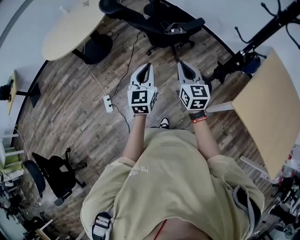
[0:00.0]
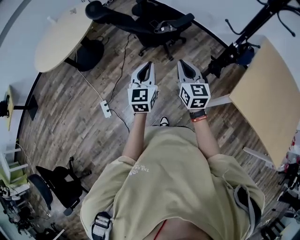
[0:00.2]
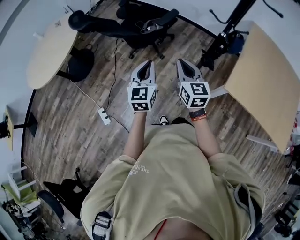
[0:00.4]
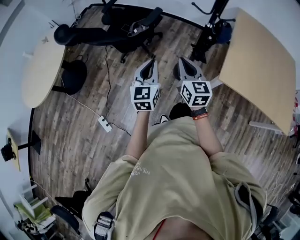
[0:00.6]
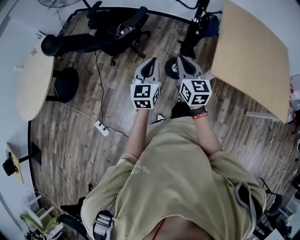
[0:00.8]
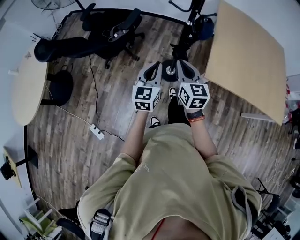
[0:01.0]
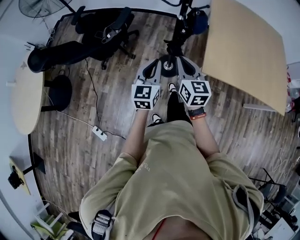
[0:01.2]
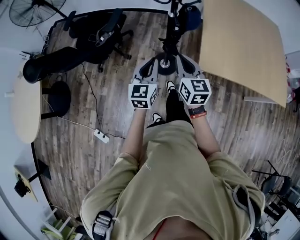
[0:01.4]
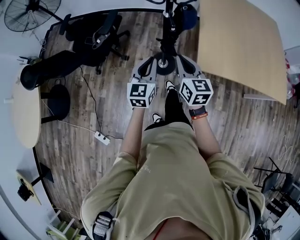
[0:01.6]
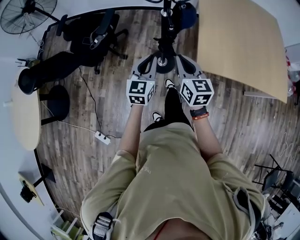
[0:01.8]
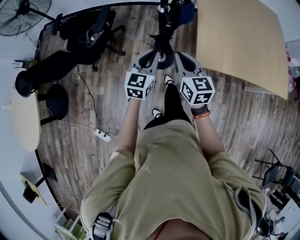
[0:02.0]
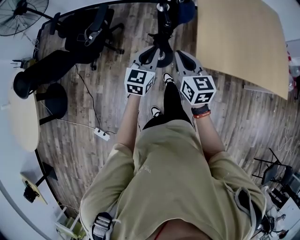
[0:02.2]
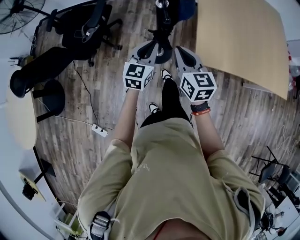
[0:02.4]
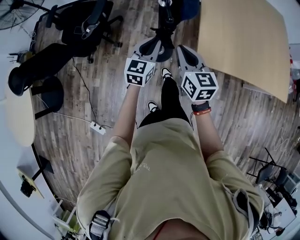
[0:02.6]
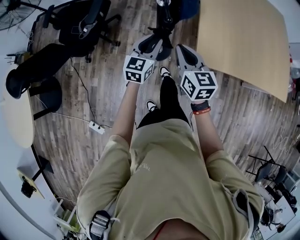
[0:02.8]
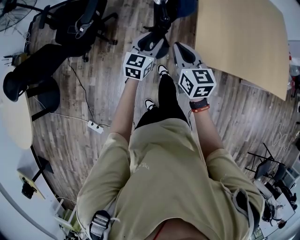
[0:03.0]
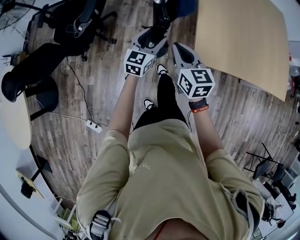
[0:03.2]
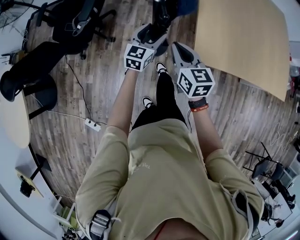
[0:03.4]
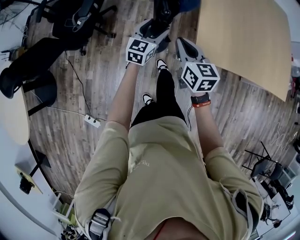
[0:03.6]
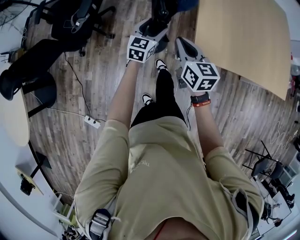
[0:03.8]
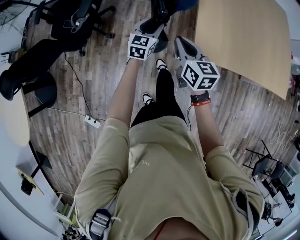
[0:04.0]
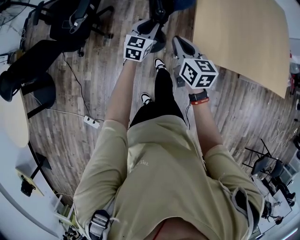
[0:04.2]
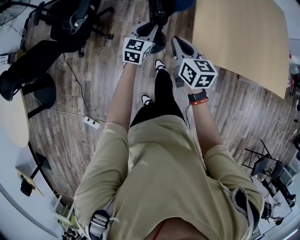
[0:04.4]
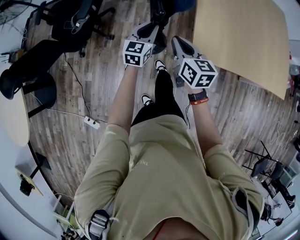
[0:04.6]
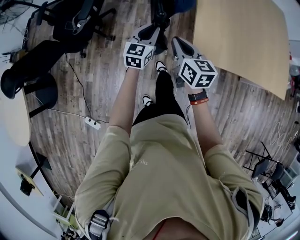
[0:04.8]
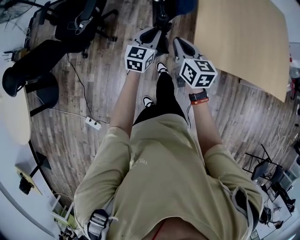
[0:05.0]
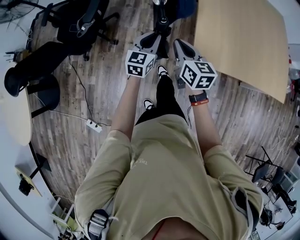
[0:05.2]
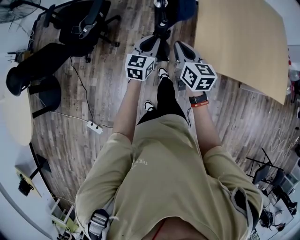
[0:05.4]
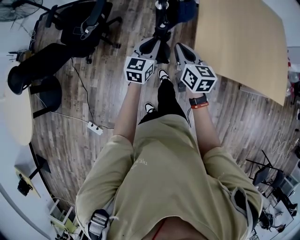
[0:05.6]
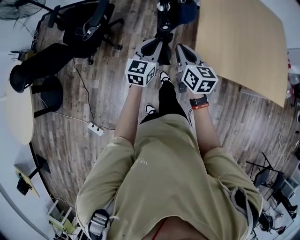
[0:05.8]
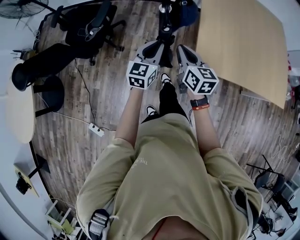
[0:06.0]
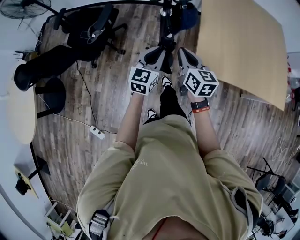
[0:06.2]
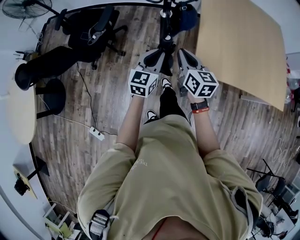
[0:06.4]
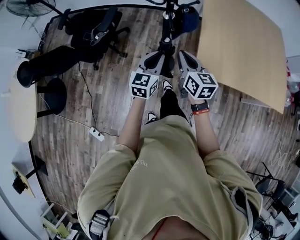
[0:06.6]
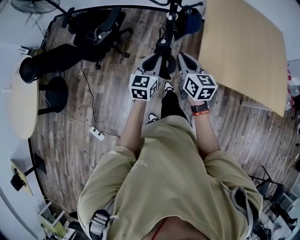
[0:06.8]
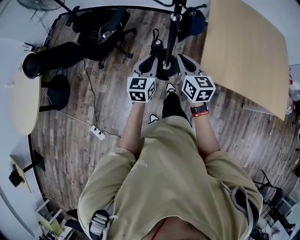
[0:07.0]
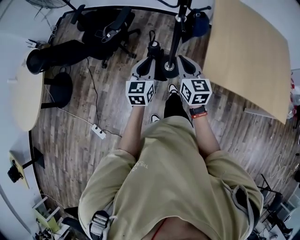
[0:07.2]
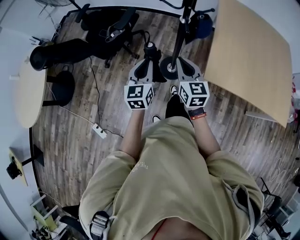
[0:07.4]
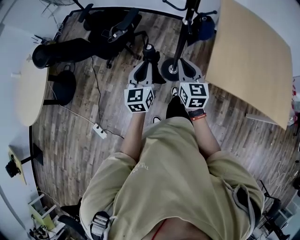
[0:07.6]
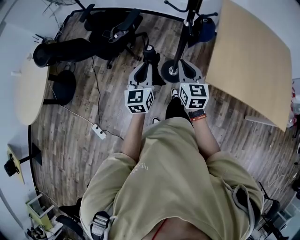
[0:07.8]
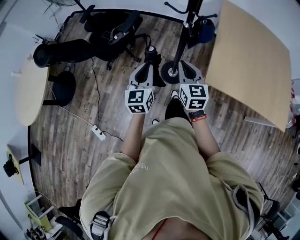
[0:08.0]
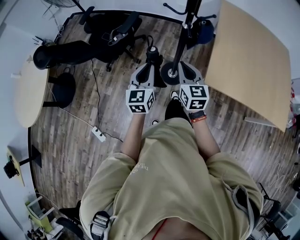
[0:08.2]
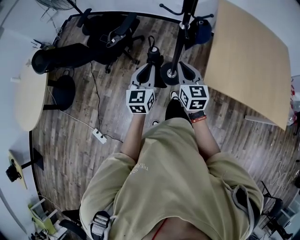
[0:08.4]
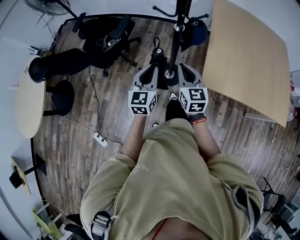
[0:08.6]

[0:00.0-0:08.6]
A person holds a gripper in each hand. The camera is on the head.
0.0 to 1.4 s: The right gripper moves approximately 30 cm, and turns by about 40 degrees, while the left gripper changes place by some 35 cm, and swivels some 40 degrees.
1.4 to 2.8 s: The right gripper goes roughly 10 cm forward and downward. The left gripper goes roughly 20 cm forward, downward and to the right.
2.8 to 4.4 s: The left gripper heads downward and forward, covering approximately 10 cm, and opens, then closes once more. The right gripper moves downward, about 5 cm.
4.4 to 5.8 s: The right gripper moves upward, approximately 5 cm. The left gripper heads upward and backward, covering roughly 15 cm.
5.8 to 7.2 s: The left gripper travels backward and to the left by roughly 15 cm. The right gripper is displaced backward and to the left by about 10 cm.

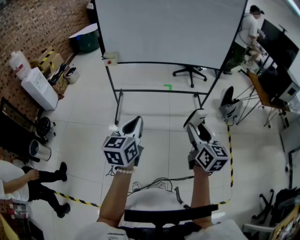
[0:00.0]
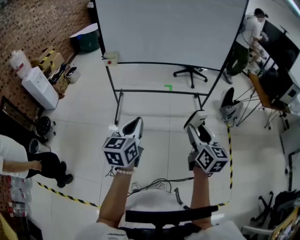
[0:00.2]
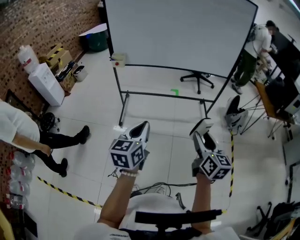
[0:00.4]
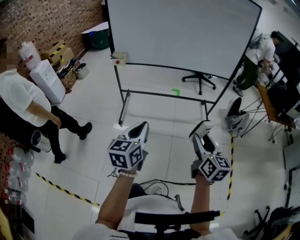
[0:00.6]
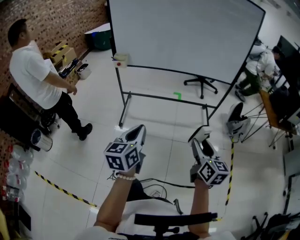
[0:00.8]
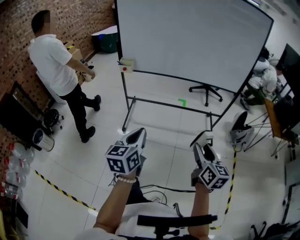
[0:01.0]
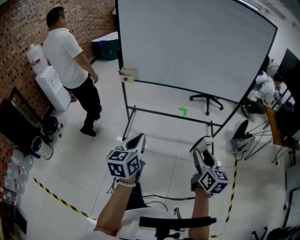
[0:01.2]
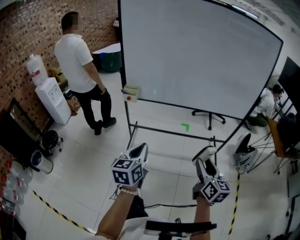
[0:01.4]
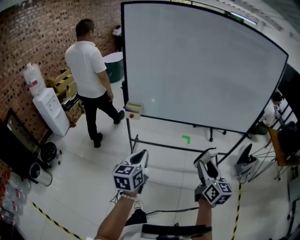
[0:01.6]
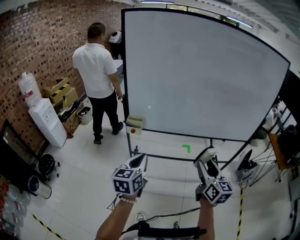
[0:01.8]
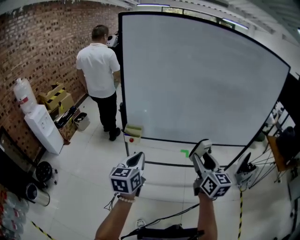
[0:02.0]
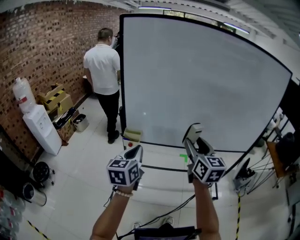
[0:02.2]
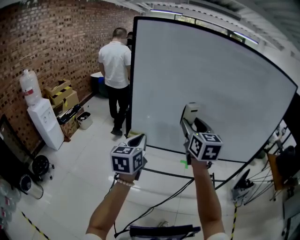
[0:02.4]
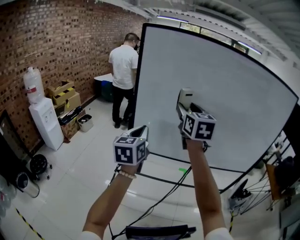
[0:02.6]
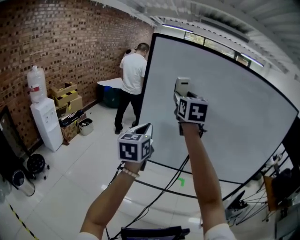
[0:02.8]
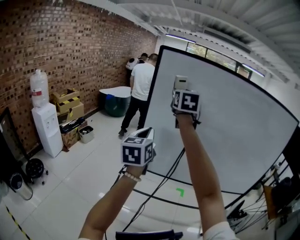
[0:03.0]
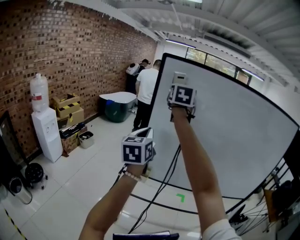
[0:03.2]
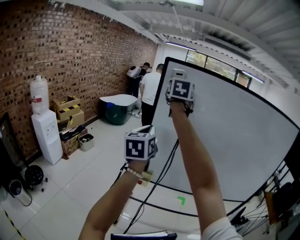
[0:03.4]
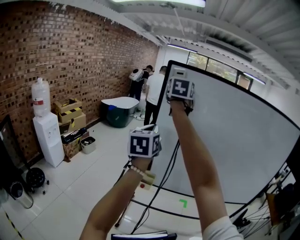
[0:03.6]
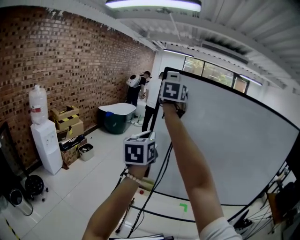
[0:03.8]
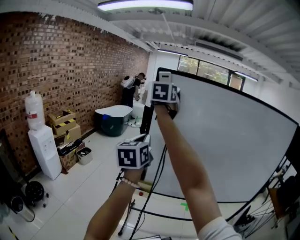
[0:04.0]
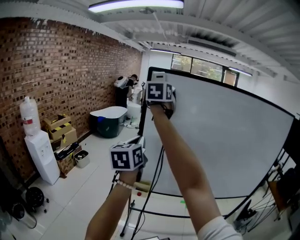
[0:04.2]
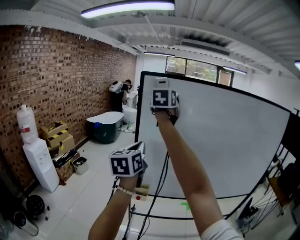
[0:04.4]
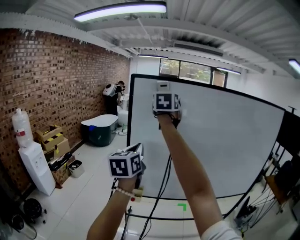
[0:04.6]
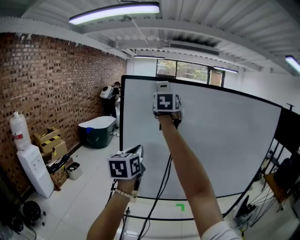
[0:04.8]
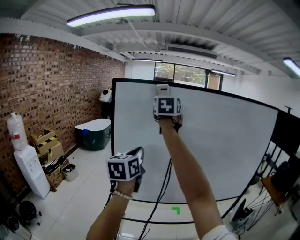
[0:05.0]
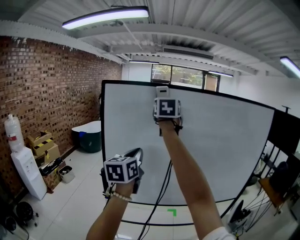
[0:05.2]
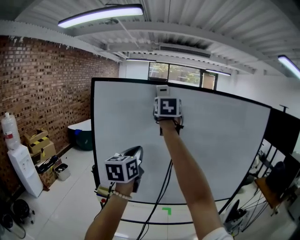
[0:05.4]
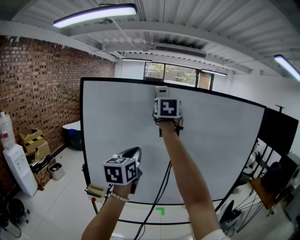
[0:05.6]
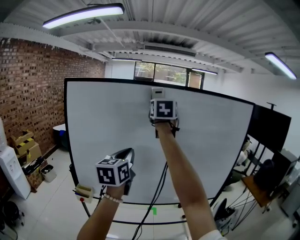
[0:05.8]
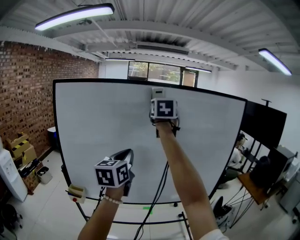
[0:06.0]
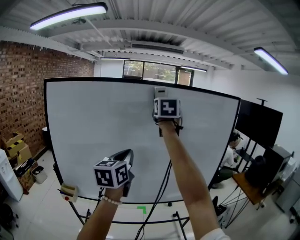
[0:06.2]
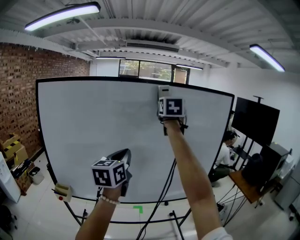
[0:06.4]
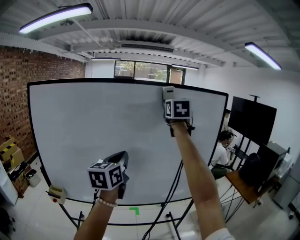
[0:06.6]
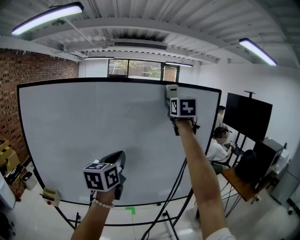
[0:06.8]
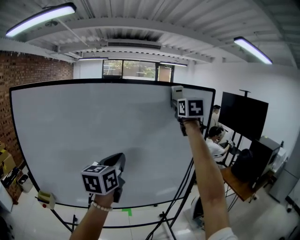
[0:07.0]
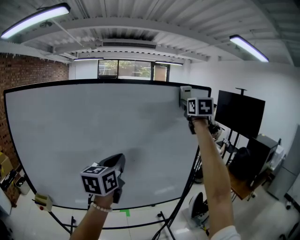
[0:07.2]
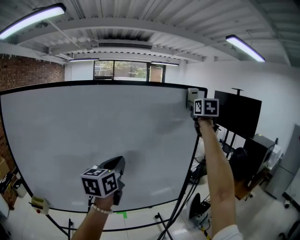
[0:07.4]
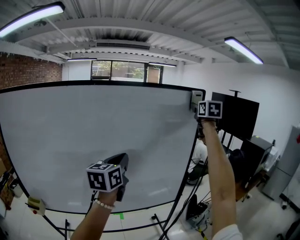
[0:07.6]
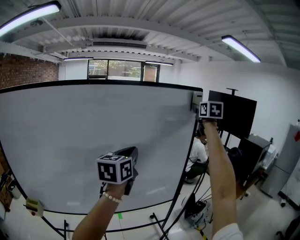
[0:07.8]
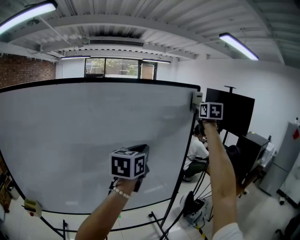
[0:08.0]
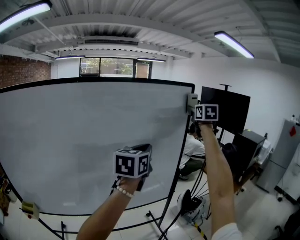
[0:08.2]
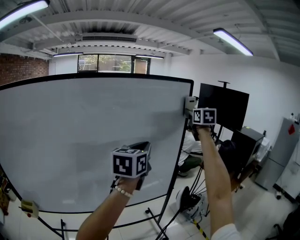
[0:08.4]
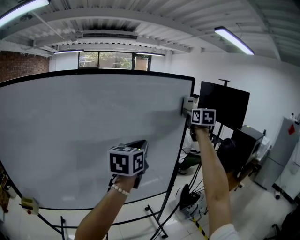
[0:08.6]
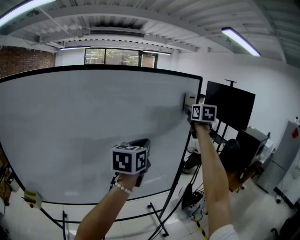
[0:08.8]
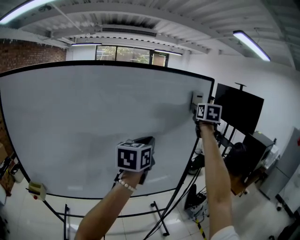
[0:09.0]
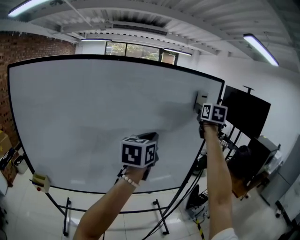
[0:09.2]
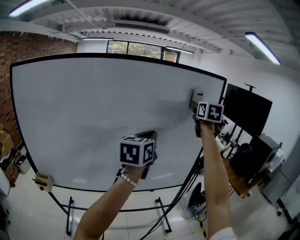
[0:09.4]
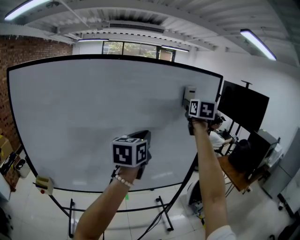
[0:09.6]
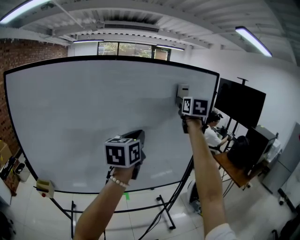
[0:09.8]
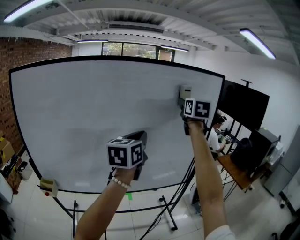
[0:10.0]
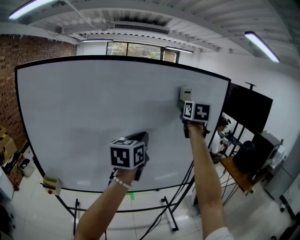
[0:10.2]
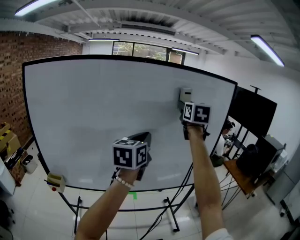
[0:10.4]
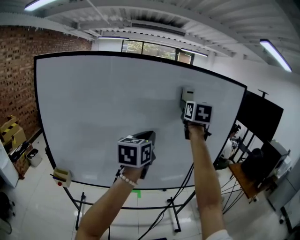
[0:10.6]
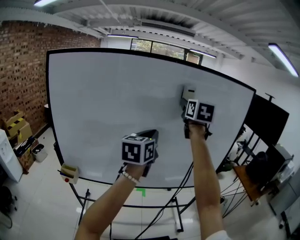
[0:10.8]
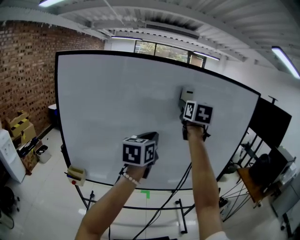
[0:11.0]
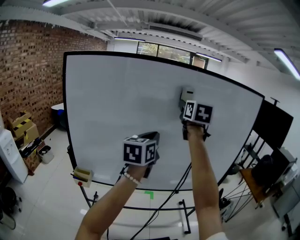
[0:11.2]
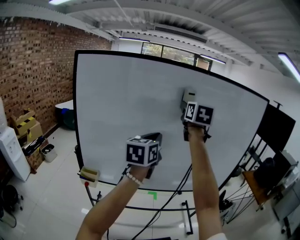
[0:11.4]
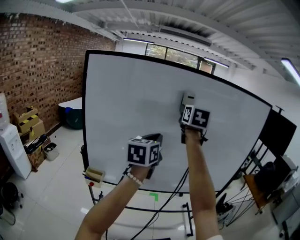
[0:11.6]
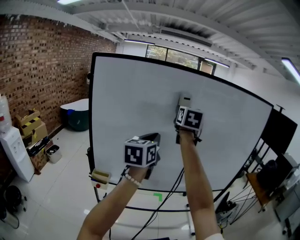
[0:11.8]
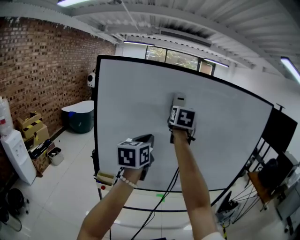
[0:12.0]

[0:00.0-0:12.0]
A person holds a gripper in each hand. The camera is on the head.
0.0 to 1.6 s: The right gripper heads forward, covering approximately 25 cm. The left gripper travels forward and to the left by some 30 cm.
1.6 to 3.0 s: The left gripper moves forward, upward and to the left, roughly 40 cm. The right gripper shifts approximately 70 cm forward, upward and to the left, and rotates approximately 30 degrees.
3.0 to 4.4 s: The left gripper goes some 5 cm upward. The right gripper travels upward and forward by some 10 cm.
4.4 to 6.0 s: The grippers both shift to the right by approximately 40 cm.
6.0 to 7.6 s: The right gripper goes approximately 50 cm to the right; the left gripper heads to the right and forward, covering some 30 cm.
7.6 to 9.0 s: The left gripper goes about 10 cm to the right, while the right gripper goes roughly 5 cm downward.
9.0 to 10.4 s: Both grippers travel together to the left and backward, some 20 cm.
10.4 to 12.0 s: The grippers both shift to the left by some 35 cm.

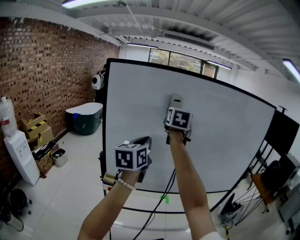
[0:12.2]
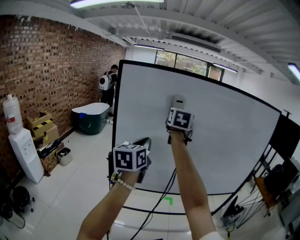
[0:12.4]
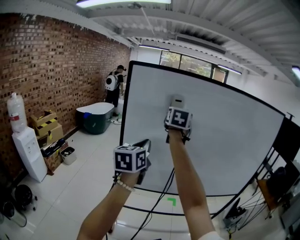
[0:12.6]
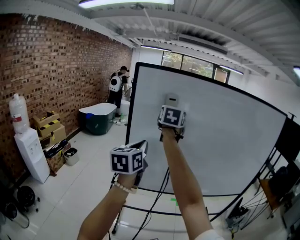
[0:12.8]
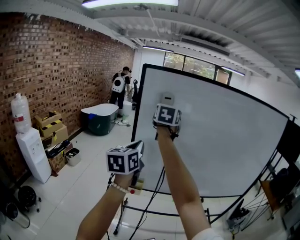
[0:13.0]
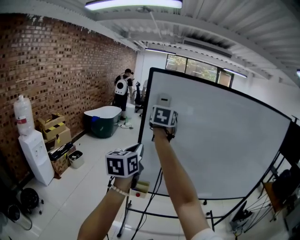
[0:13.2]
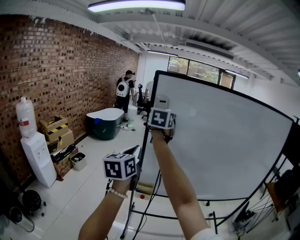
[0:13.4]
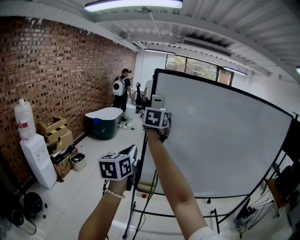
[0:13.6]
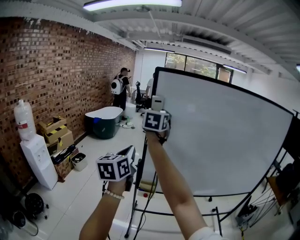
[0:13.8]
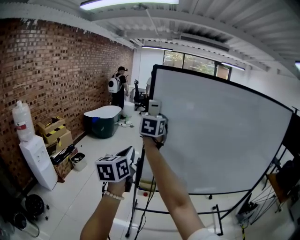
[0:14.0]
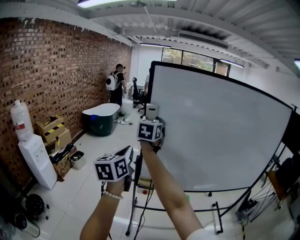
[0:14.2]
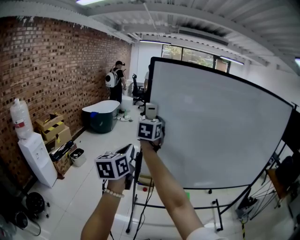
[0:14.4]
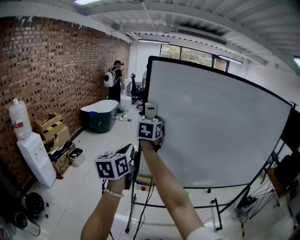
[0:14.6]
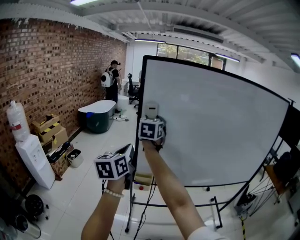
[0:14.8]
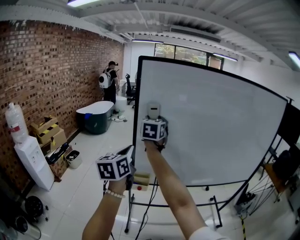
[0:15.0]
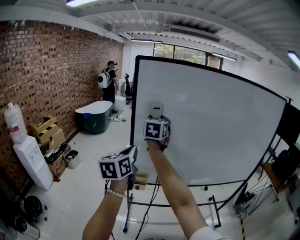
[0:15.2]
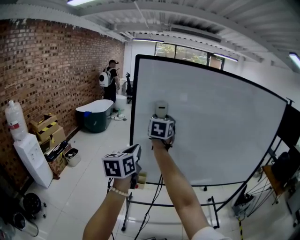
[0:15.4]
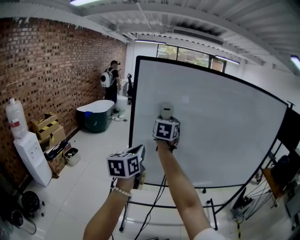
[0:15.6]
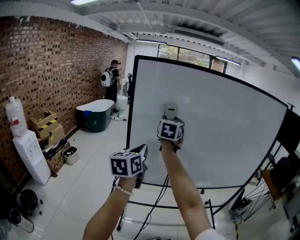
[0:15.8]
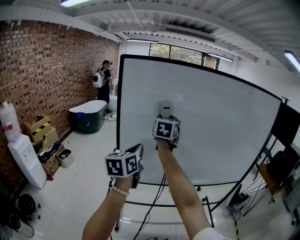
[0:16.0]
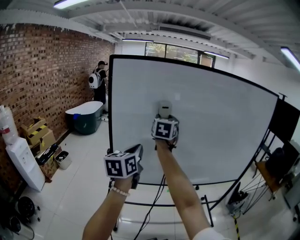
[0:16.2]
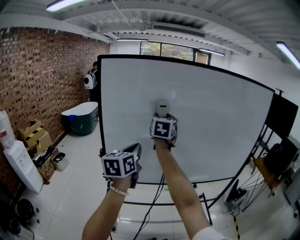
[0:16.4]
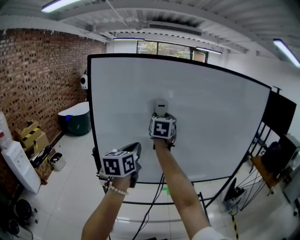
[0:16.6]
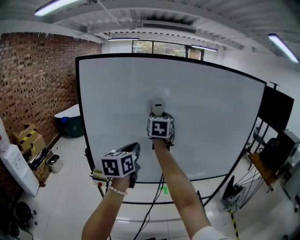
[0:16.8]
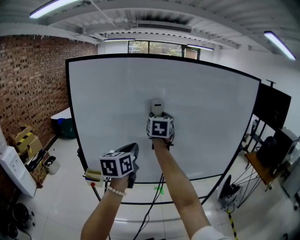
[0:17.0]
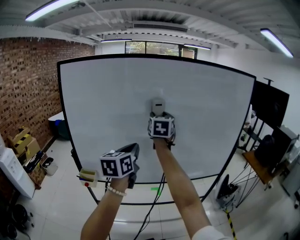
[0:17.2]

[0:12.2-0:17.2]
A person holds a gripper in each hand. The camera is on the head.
12.2 to 13.8 s: Both grippers move to the left, roughly 30 cm.
13.8 to 15.6 s: The left gripper goes roughly 15 cm to the right; the right gripper heads to the right and downward, covering some 15 cm.
15.6 to 17.2 s: The grippers both shift to the right by roughly 35 cm.
